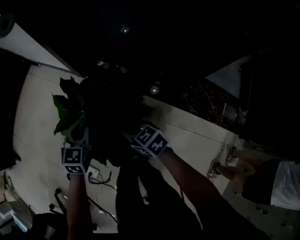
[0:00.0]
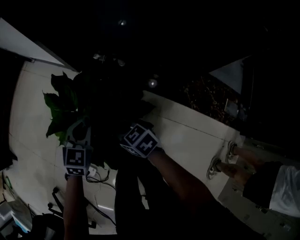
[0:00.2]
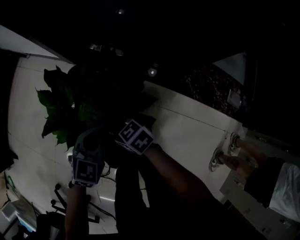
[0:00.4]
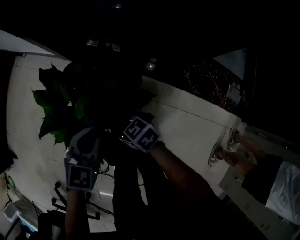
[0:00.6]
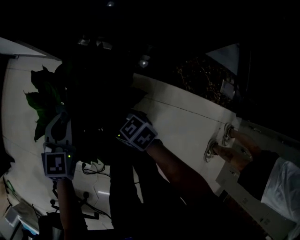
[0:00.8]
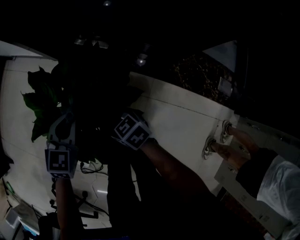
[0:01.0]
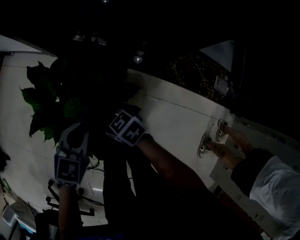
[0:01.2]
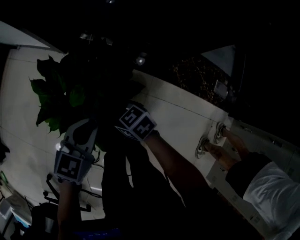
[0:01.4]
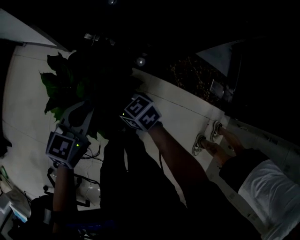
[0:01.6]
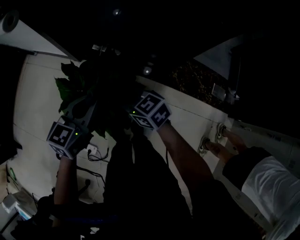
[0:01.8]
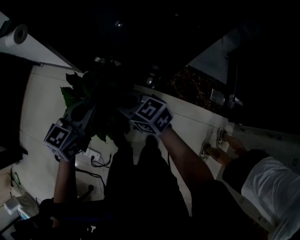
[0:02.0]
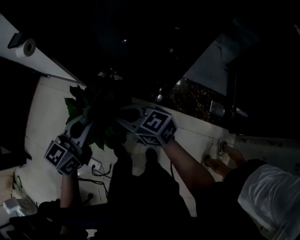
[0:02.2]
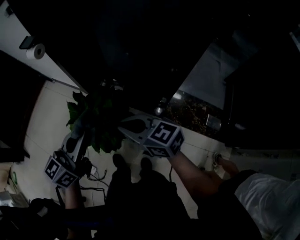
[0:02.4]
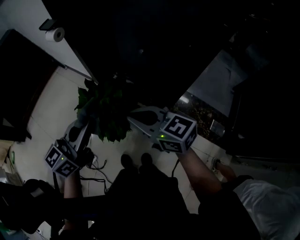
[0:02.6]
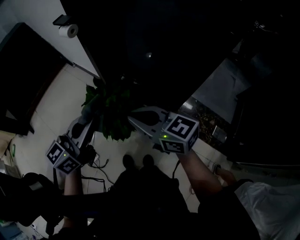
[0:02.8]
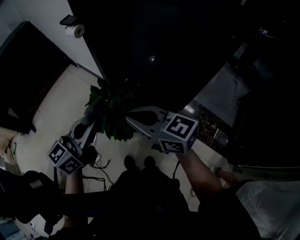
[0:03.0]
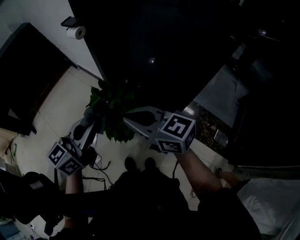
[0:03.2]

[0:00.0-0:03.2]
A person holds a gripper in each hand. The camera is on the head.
0:00.0 to 0:01.6: The left gripper goes some 10 cm upward and to the right, and swivels about 20 degrees; the right gripper goes downward and returns, approximately 10 cm each way.
0:01.6 to 0:03.2: Both grippers travel together upward and backward, approximately 40 cm. The left gripper tips its fingers upward by approximately 30 degrees. The right gripper rotates some 30 degrees.

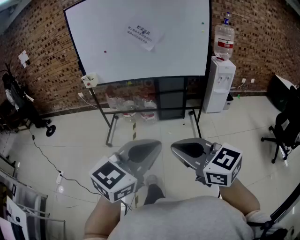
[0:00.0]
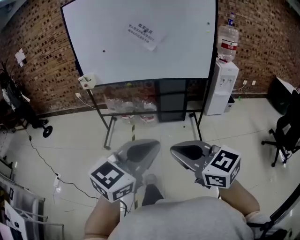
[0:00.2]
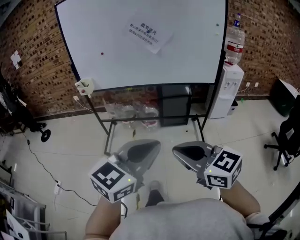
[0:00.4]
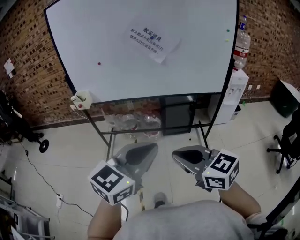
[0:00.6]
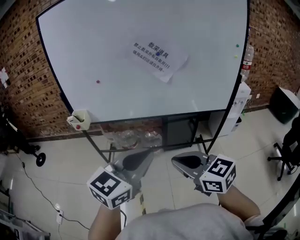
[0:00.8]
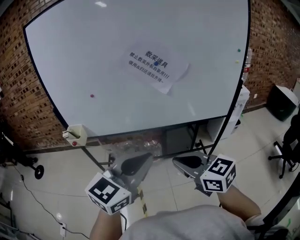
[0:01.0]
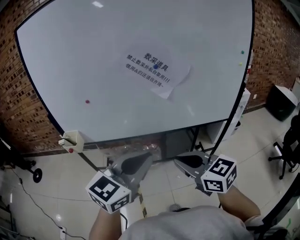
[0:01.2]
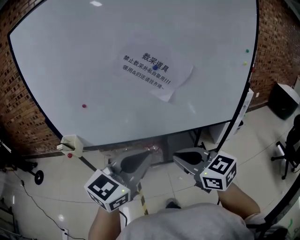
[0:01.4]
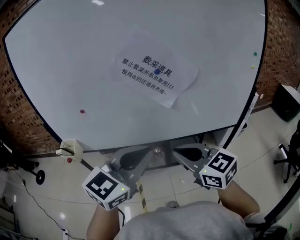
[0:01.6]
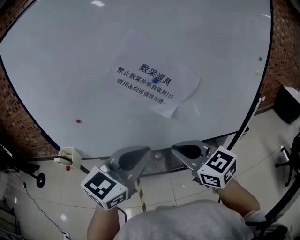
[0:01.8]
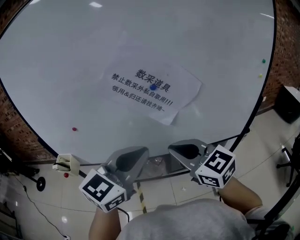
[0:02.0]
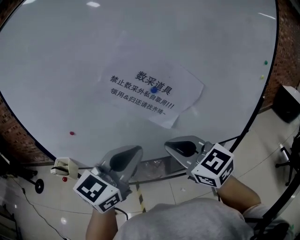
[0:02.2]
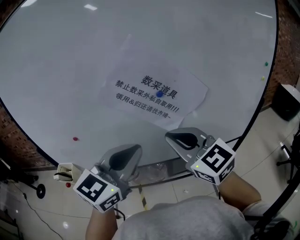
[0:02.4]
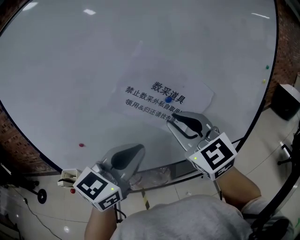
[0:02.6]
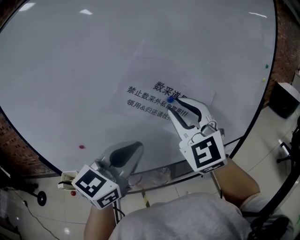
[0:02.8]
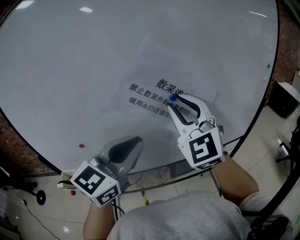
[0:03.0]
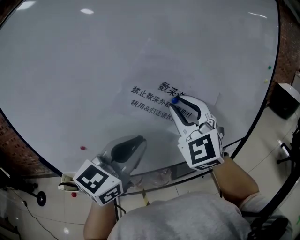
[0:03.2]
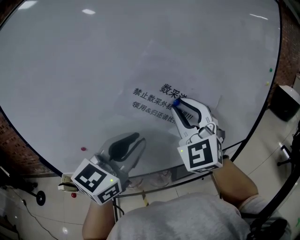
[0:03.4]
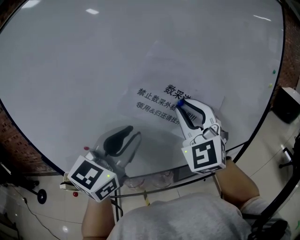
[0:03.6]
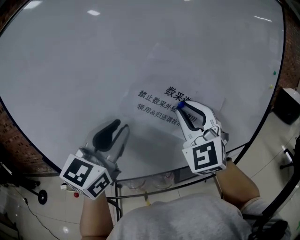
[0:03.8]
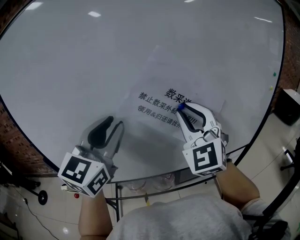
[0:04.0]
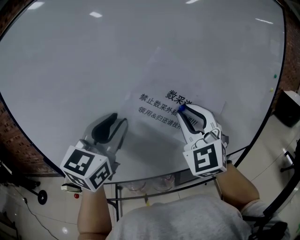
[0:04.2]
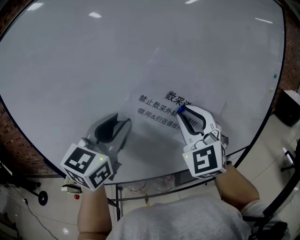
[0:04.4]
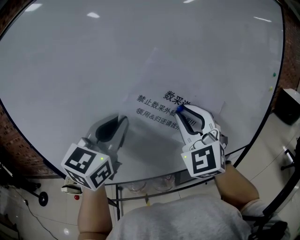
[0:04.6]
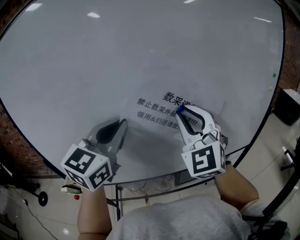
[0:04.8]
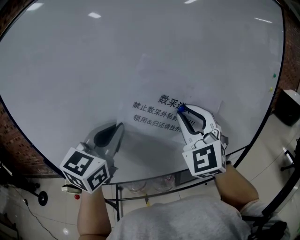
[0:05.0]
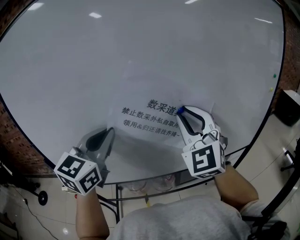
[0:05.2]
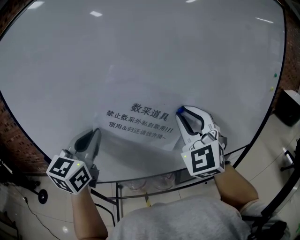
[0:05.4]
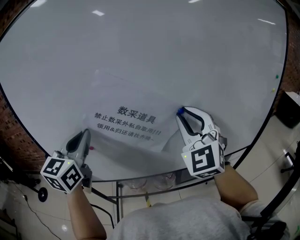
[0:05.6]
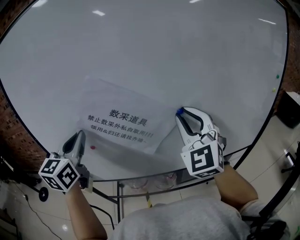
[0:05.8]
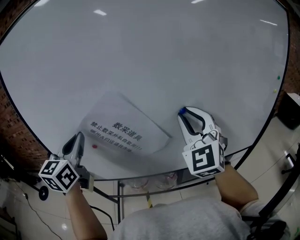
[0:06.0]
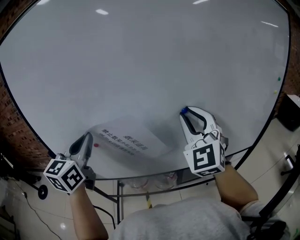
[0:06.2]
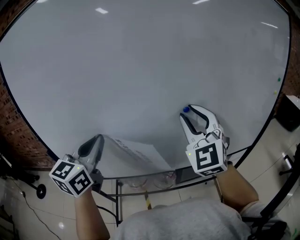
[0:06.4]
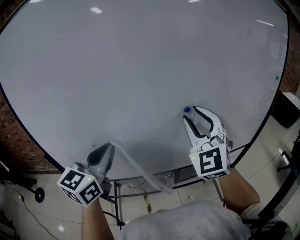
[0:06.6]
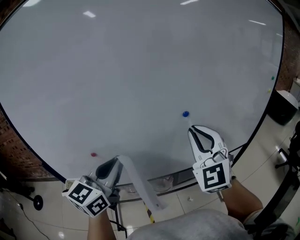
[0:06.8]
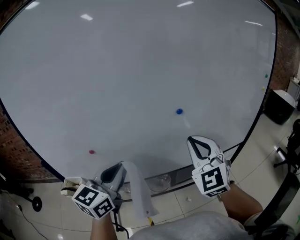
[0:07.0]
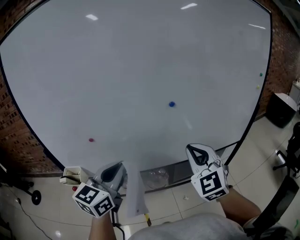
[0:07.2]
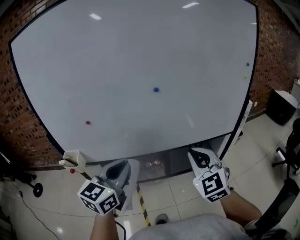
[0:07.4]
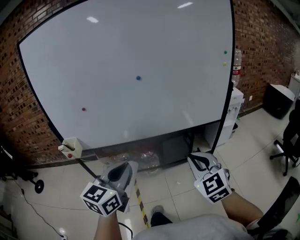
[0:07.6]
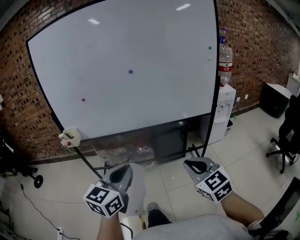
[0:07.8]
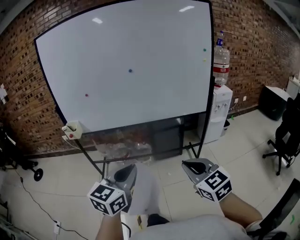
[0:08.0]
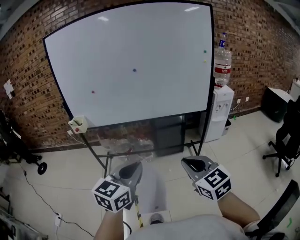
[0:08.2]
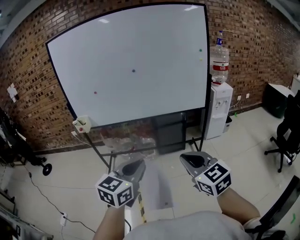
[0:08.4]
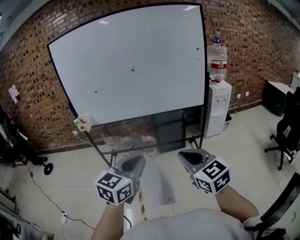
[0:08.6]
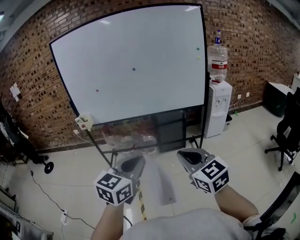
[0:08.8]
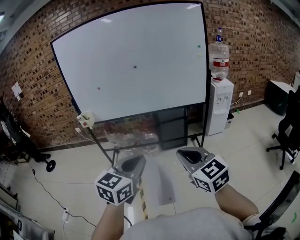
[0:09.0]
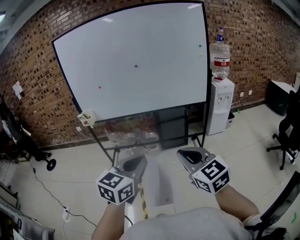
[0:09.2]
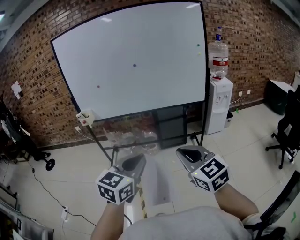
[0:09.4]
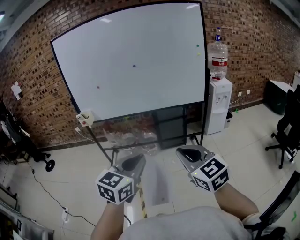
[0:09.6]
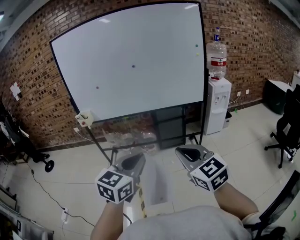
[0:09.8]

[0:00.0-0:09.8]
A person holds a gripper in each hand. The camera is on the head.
0:00.0 to 0:01.4: Both grippers are carried forward, roughly 50 cm.
0:01.4 to 0:02.8: The left gripper travels forward by about 20 cm, while the right gripper travels forward and upward by roughly 30 cm, rotates roughly 50 degrees, and opens.
0:02.8 to 0:04.2: The left gripper is displaced to the left, upward and forward by roughly 10 cm, and opens its fingers.
0:04.2 to 0:05.6: The left gripper goes some 15 cm to the left, and closes.
0:05.6 to 0:07.0: The left gripper shifts some 15 cm downward and to the right, and rotates about 20 degrees. The right gripper heads downward, covering some 10 cm.
0:07.0 to 0:08.4: The pair of grippers is taken backward and to the right, about 50 cm. The right gripper swivels roughly 40 degrees.
0:08.4 to 0:09.8: The grippers make only small movements.

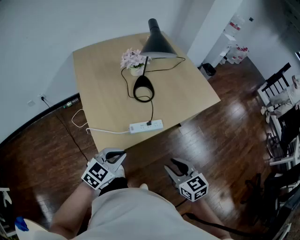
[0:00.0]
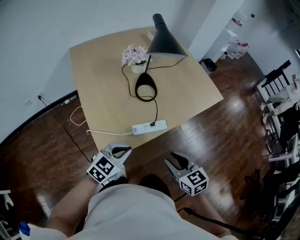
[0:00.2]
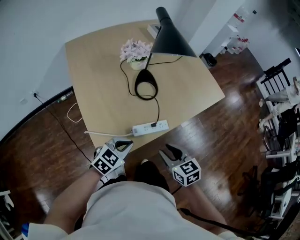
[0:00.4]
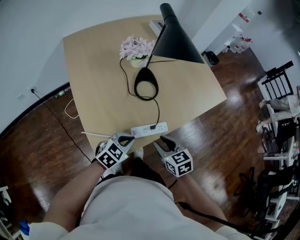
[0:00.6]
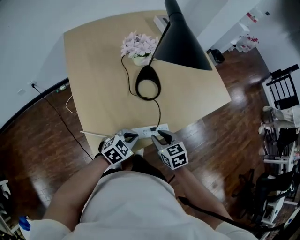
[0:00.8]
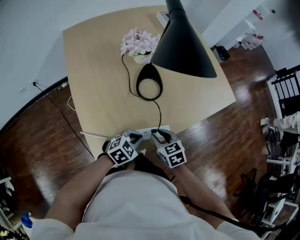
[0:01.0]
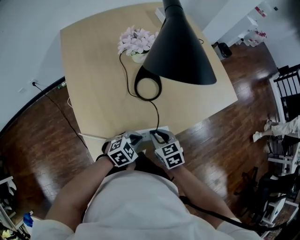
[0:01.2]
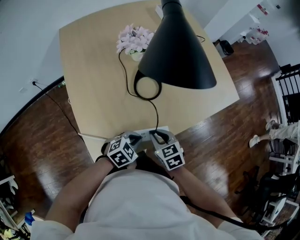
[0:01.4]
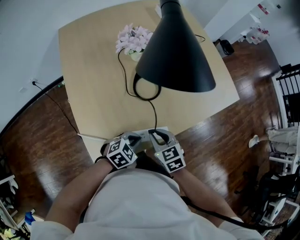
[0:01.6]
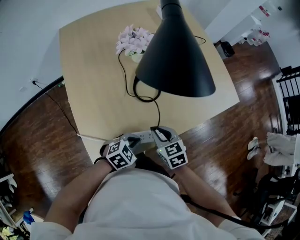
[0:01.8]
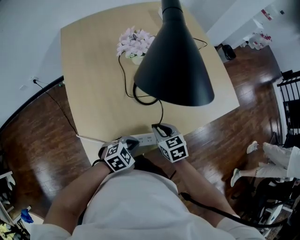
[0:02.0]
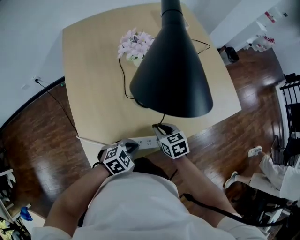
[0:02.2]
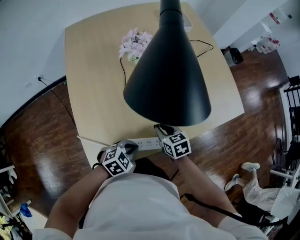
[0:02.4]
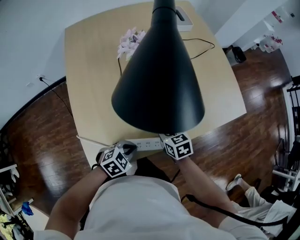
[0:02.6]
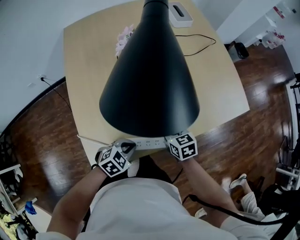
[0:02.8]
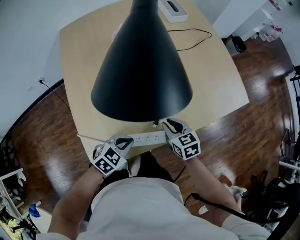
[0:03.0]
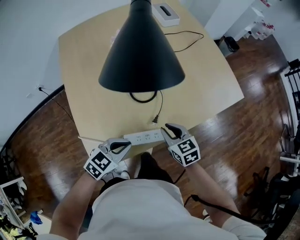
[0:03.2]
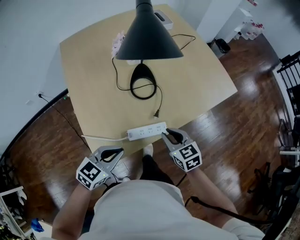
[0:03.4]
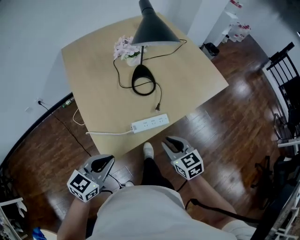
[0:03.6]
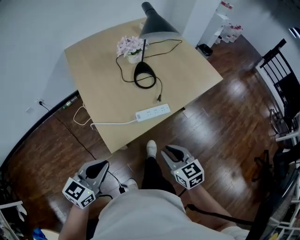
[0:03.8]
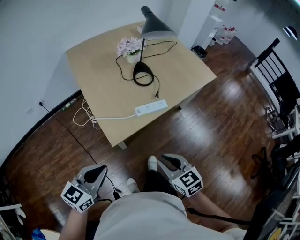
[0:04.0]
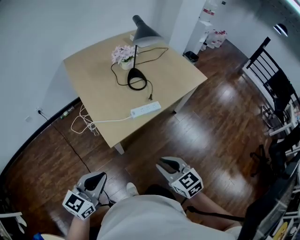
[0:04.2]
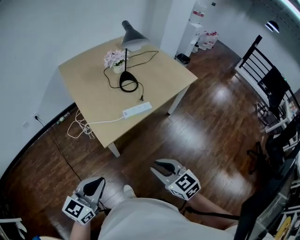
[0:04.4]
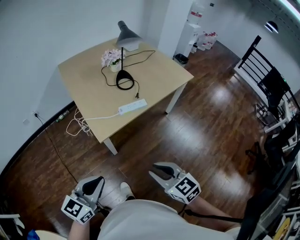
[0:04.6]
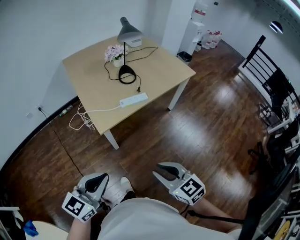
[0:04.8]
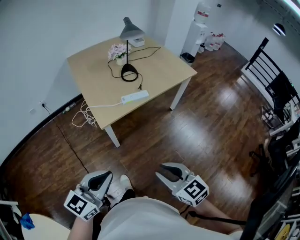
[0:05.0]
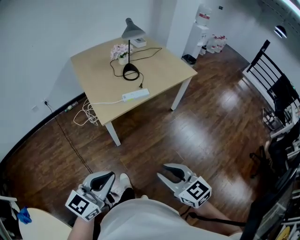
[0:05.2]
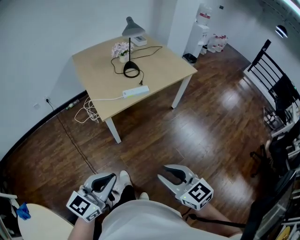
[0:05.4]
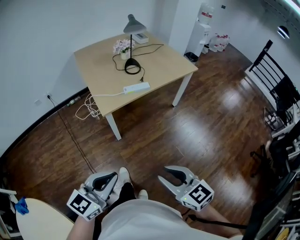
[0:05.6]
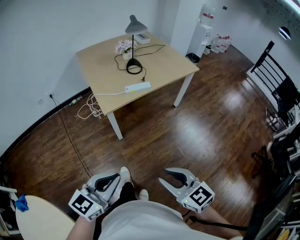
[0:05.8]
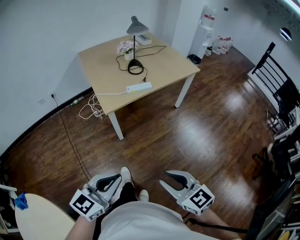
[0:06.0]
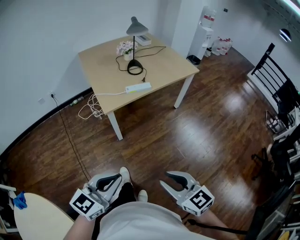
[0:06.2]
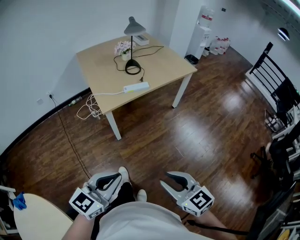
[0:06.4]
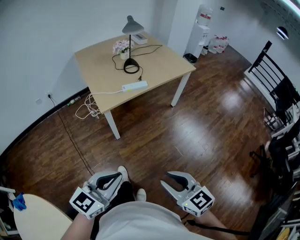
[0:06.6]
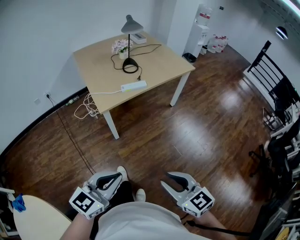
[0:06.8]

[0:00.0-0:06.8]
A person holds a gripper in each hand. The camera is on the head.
0:00.0 to 0:01.4: The right gripper shifts roughly 30 cm forward, downward and to the left, while the left gripper moves forward and downward, about 25 cm, and changes its angle by some 20 degrees.
0:01.4 to 0:02.8: The right gripper is displaced forward by about 10 cm.
0:02.8 to 0:04.0: The right gripper heads backward, covering about 40 cm; the left gripper travels backward, upward and to the left by about 40 cm, and tips its fingers upward by some 40 degrees.
0:04.0 to 0:05.4: The right gripper travels backward by approximately 25 cm; the left gripper shifts roughly 30 cm backward and to the right.
0:05.4 to 0:06.8: The left gripper shifts by approximately 5 cm. Meanwhile the right gripper is displaced backward by some 5 cm.

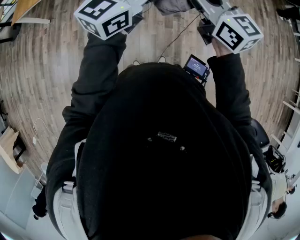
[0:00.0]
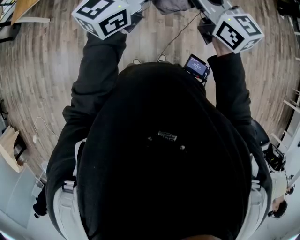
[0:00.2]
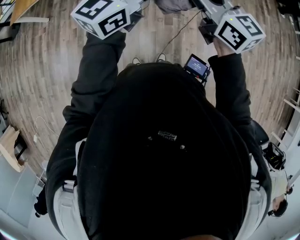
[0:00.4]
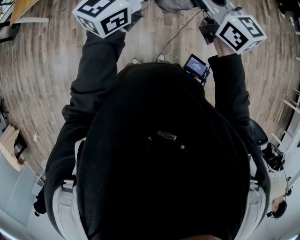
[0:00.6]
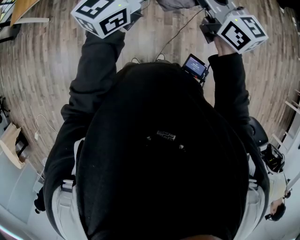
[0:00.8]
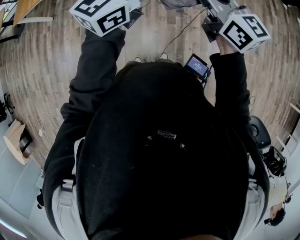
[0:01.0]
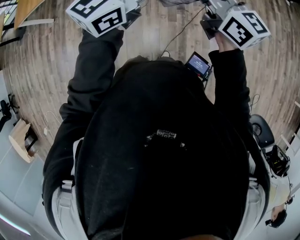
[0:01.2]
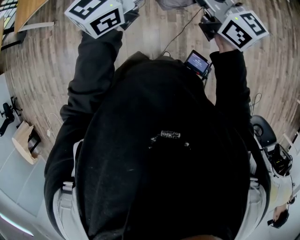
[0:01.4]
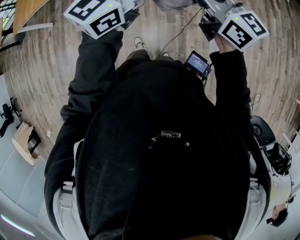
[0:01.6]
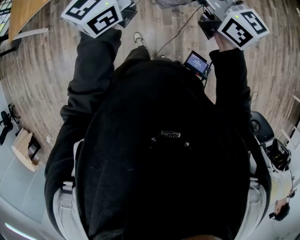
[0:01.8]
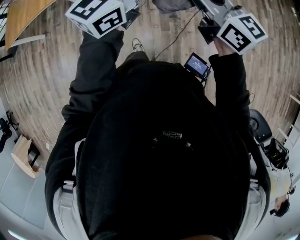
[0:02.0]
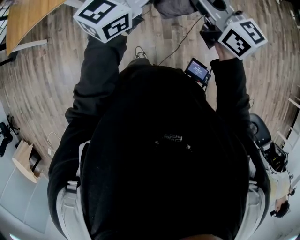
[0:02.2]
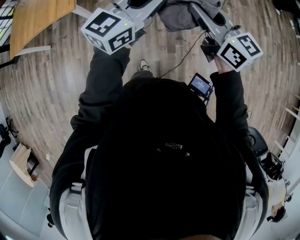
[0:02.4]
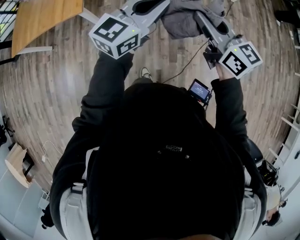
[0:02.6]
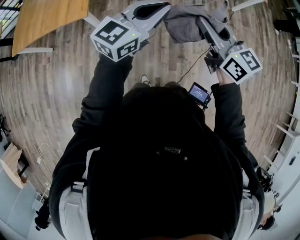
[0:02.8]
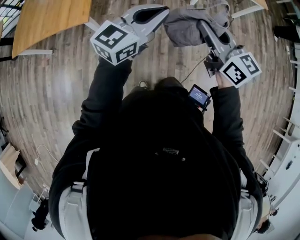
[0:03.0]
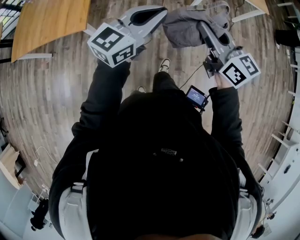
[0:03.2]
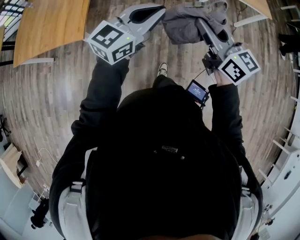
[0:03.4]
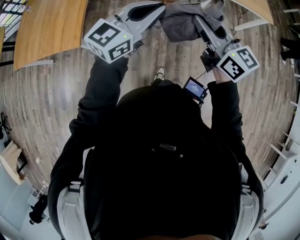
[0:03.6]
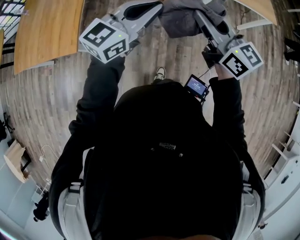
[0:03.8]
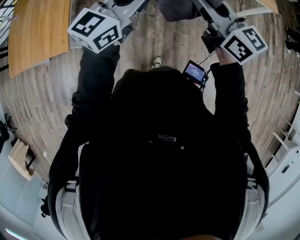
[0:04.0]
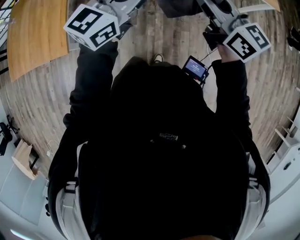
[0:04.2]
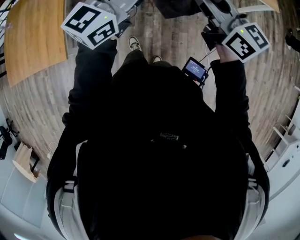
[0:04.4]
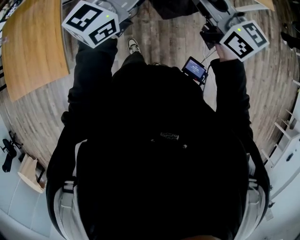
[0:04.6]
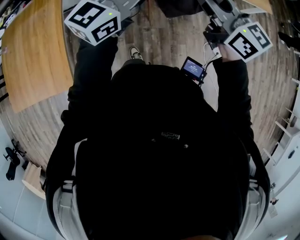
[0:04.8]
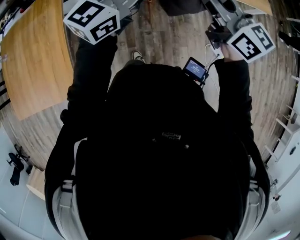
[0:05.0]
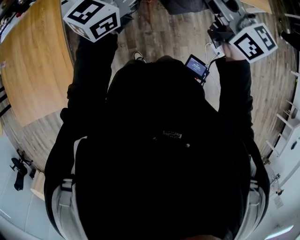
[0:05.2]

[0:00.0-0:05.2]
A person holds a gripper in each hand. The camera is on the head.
0:00.0 to 0:01.8: The left gripper heads to the right, upward and forward, covering some 15 cm. Meanwhile the right gripper is displaced to the right and upward by roughly 15 cm.
0:01.8 to 0:03.4: Both grippers move backward and to the left, some 15 cm.
0:03.4 to 0:05.2: Both grippers are carried forward, about 50 cm.
